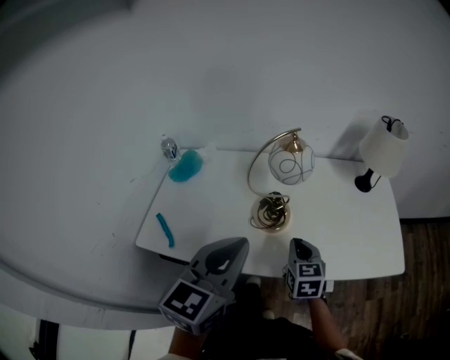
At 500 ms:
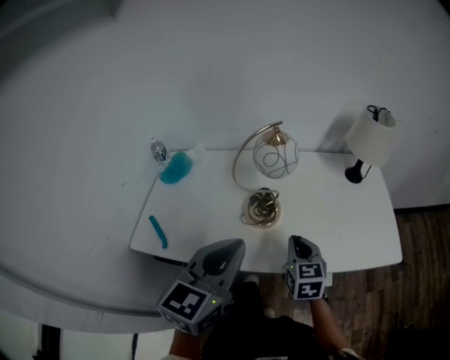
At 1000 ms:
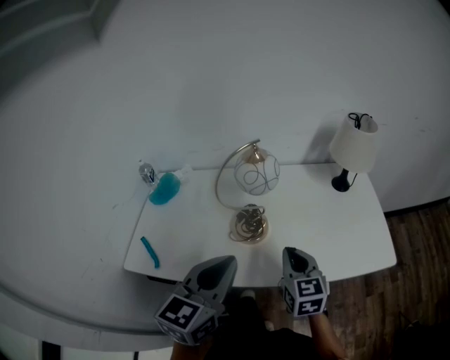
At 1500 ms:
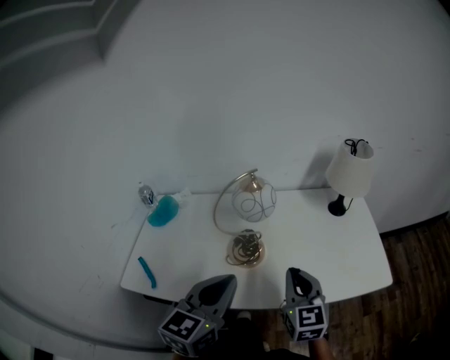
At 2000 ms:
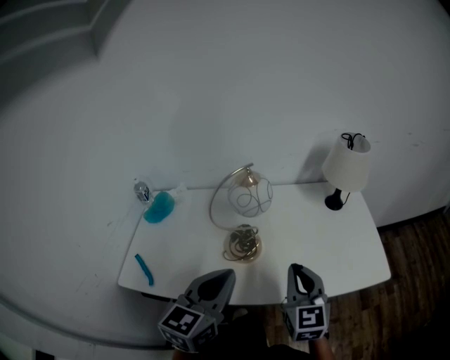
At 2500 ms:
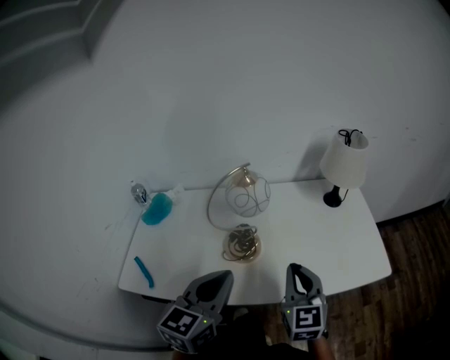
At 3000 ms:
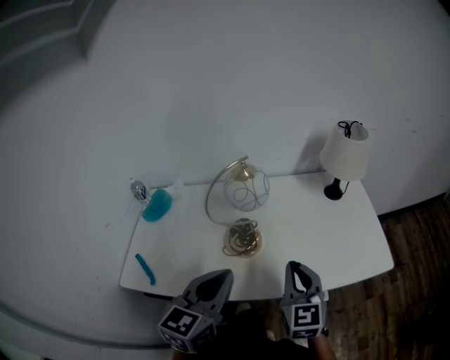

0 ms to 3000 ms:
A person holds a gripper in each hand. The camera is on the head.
0 ms to 1500 ms: The left gripper changes place by roughly 5 cm. Meanwhile the right gripper heads upward and to the right, covering roughly 10 cm.
1500 ms to 3000 ms: There are only small adjustments of the grippers.

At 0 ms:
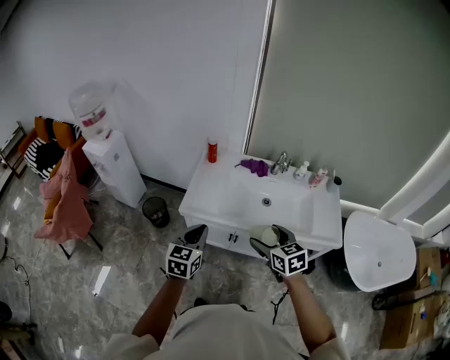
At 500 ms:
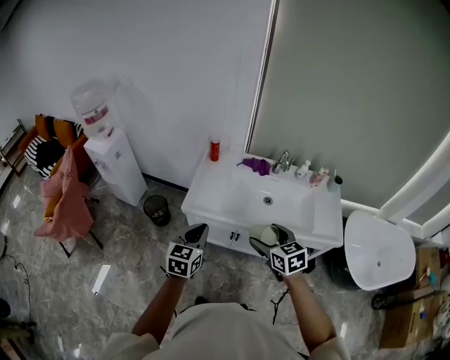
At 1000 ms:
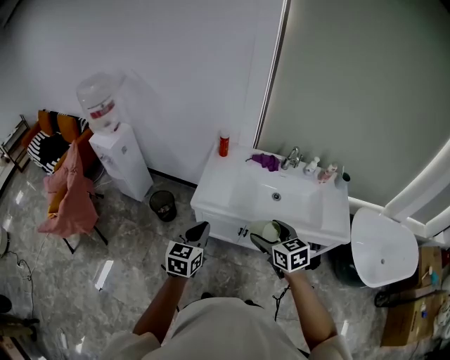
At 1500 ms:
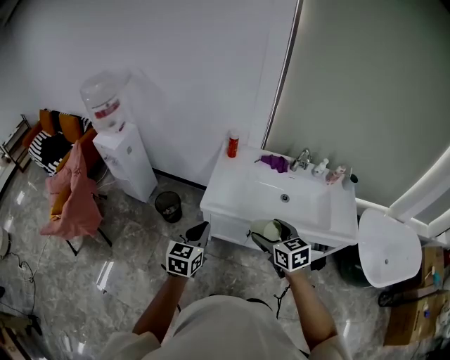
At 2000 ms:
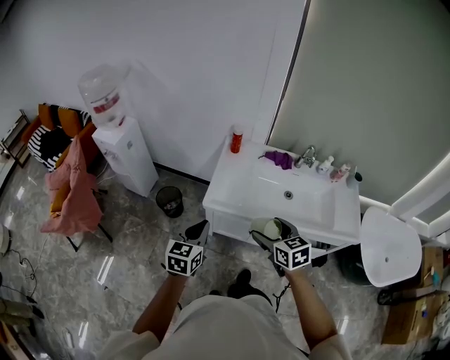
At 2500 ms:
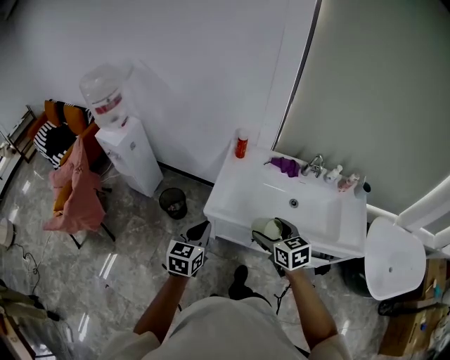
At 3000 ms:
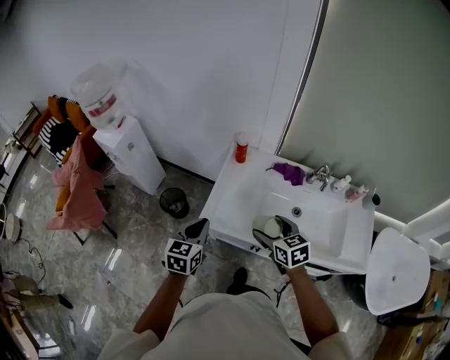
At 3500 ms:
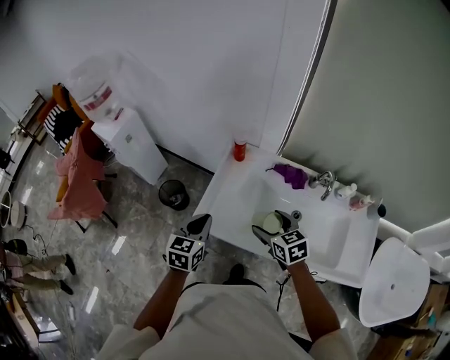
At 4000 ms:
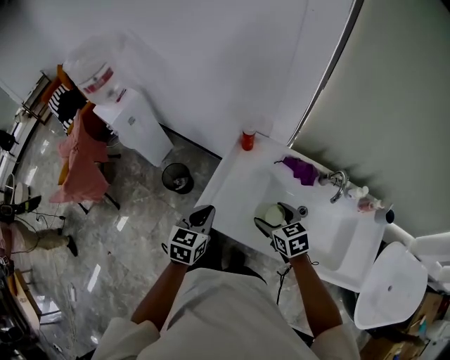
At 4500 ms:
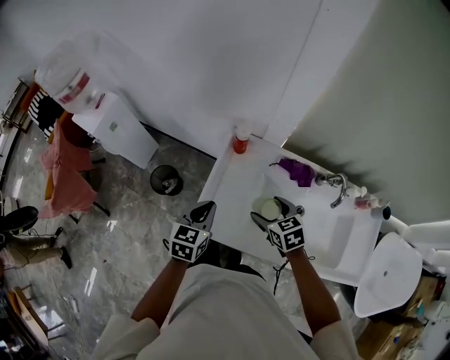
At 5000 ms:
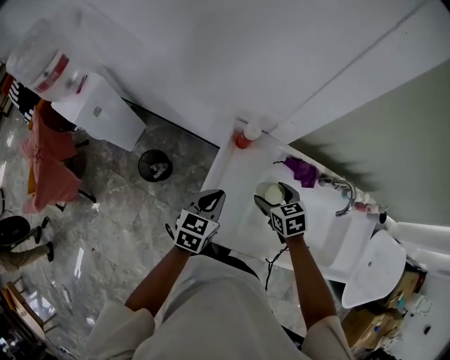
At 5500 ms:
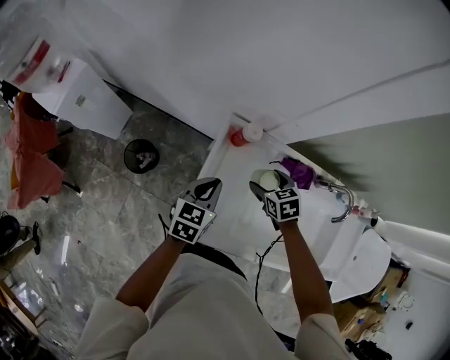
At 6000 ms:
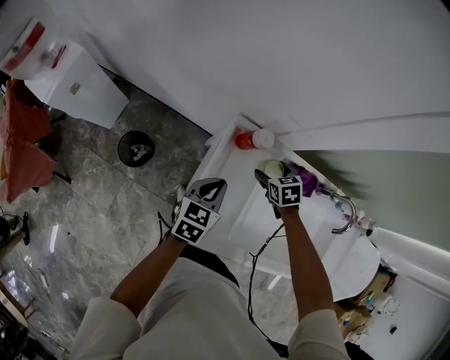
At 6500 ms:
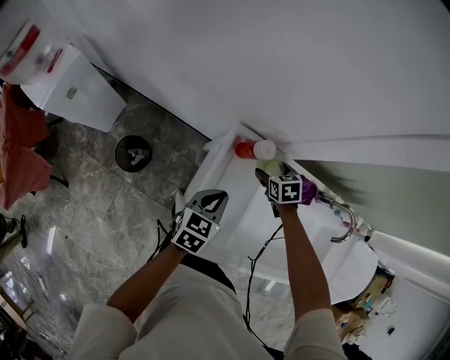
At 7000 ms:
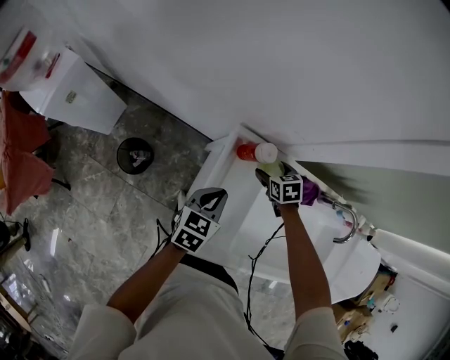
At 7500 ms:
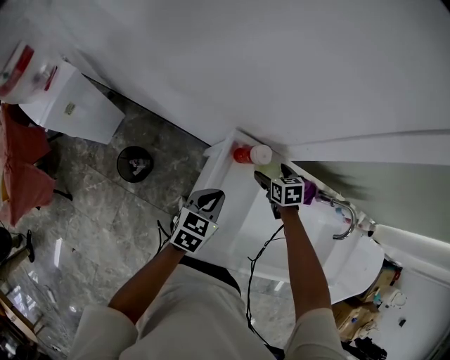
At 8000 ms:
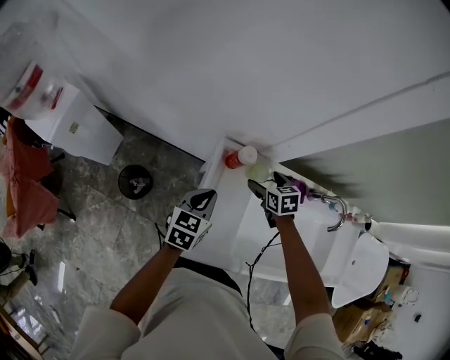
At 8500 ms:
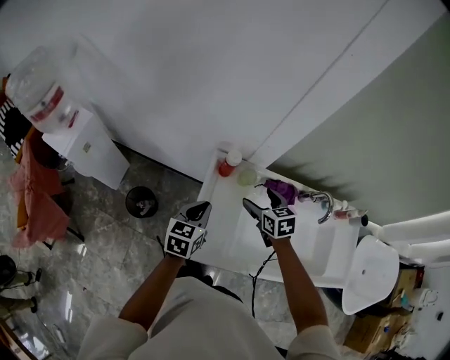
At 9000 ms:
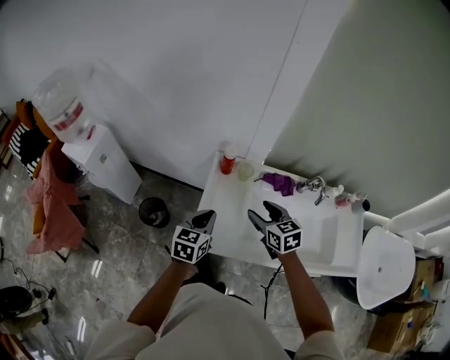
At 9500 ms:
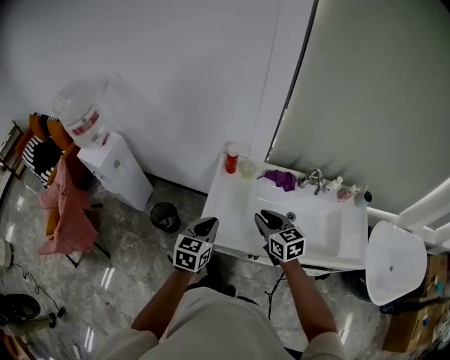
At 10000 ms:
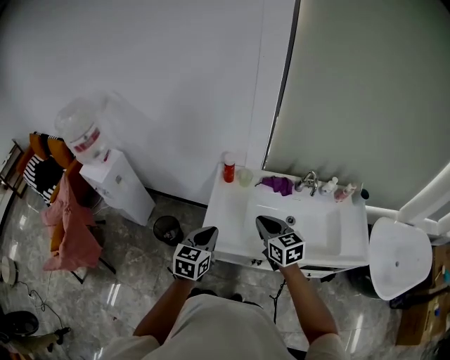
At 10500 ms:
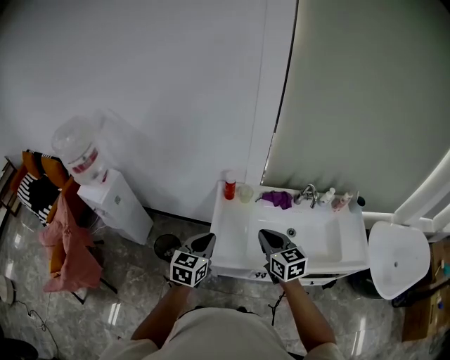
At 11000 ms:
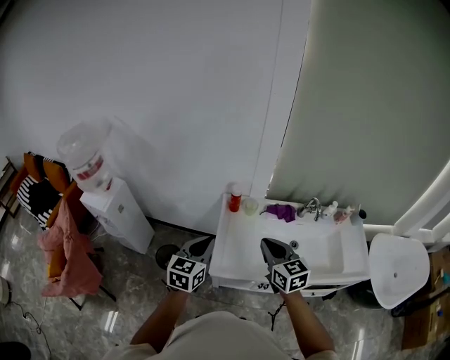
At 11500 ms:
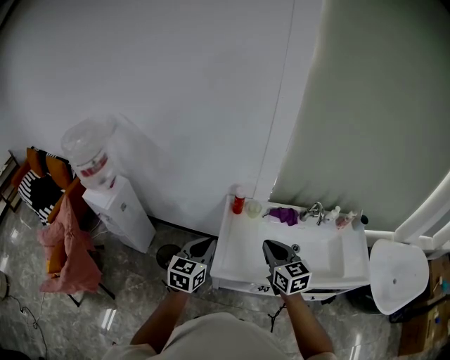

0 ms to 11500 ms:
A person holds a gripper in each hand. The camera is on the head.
0 ms to 2000 ms: Both grippers travel together to the left, roughly 15 cm.
2000 ms to 4000 ms: The right gripper goes approximately 30 cm forward and downward. Meanwhile the left gripper travels forward and to the right by approximately 25 cm.
4000 ms to 6000 ms: The two grippers go some 30 cm forward and downward. The right gripper rotates roughly 30 degrees.
6000 ms to 7500 ms: The grippers make only small movements.
7500 ms to 9500 ms: Both grippers move backward and upward, some 40 cm. The right gripper tips its fingers upward by about 40 degrees, and closes up.
9500 ms to 11500 ms: The right gripper shifts approximately 10 cm upward and to the left. The left gripper travels to the left and upward by approximately 15 cm.

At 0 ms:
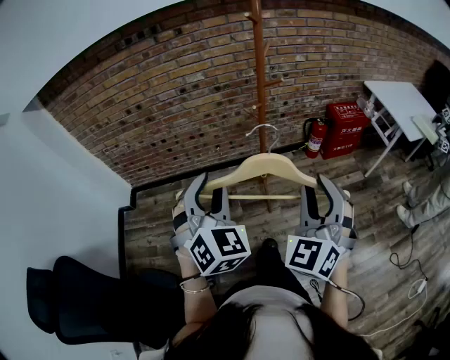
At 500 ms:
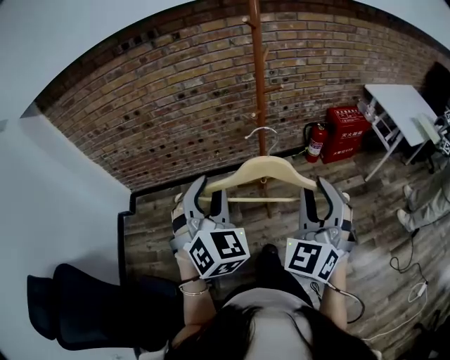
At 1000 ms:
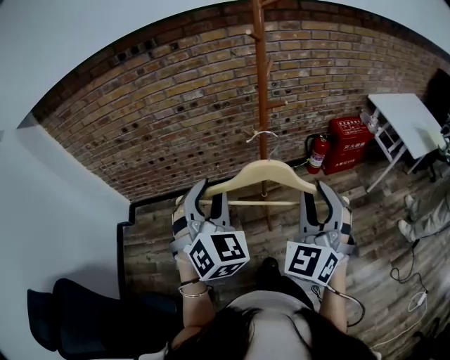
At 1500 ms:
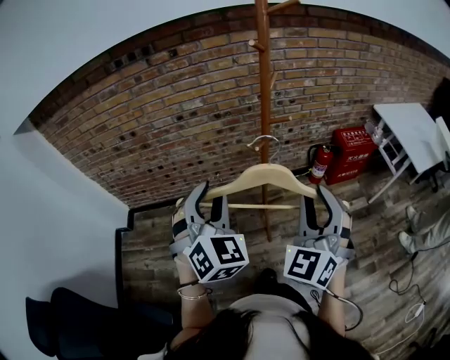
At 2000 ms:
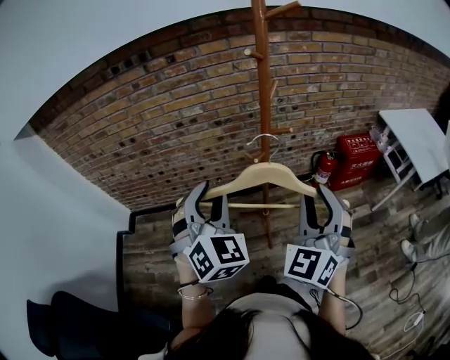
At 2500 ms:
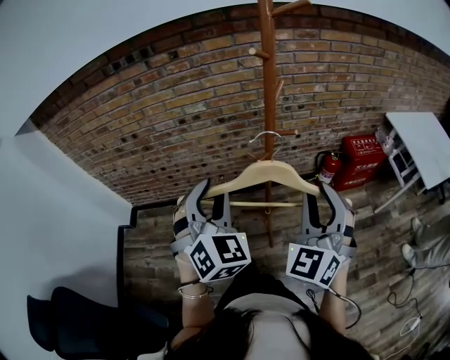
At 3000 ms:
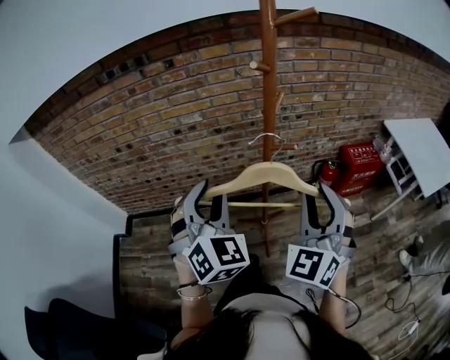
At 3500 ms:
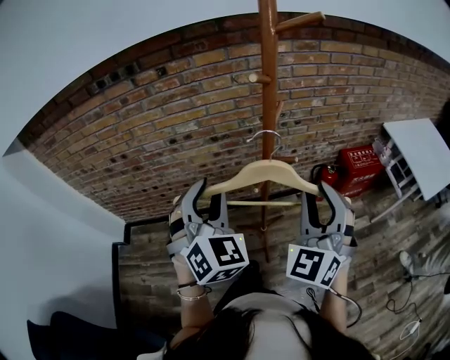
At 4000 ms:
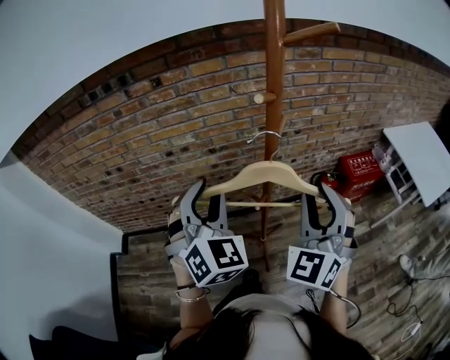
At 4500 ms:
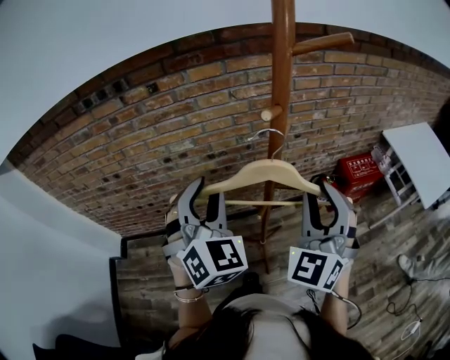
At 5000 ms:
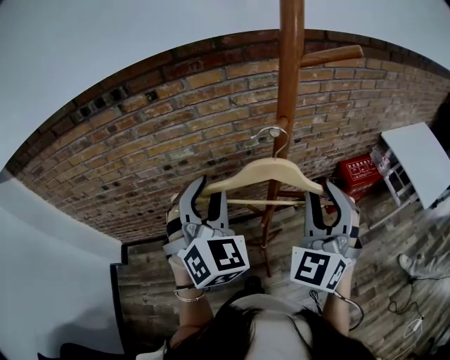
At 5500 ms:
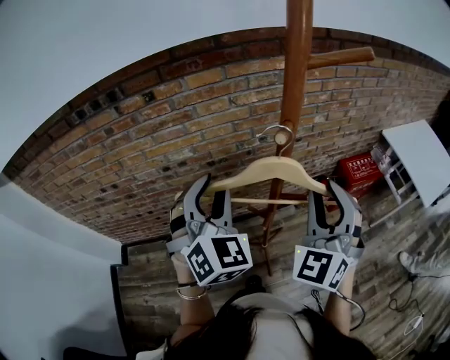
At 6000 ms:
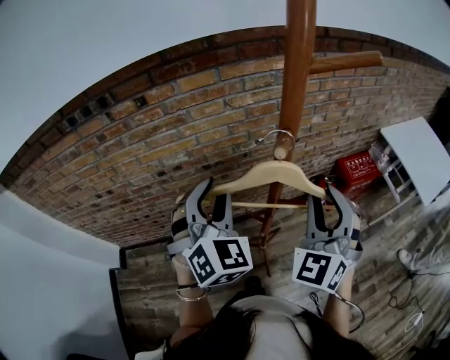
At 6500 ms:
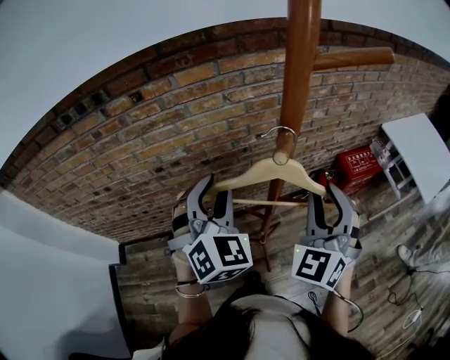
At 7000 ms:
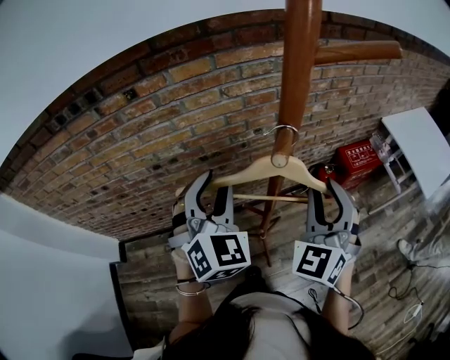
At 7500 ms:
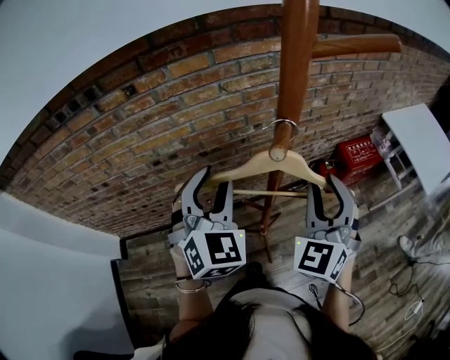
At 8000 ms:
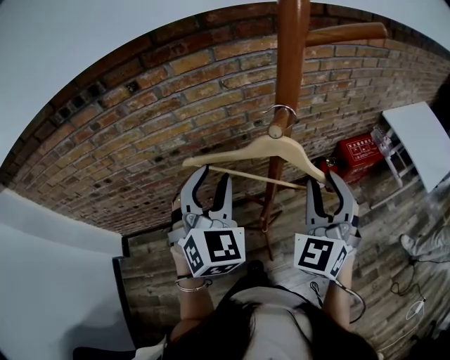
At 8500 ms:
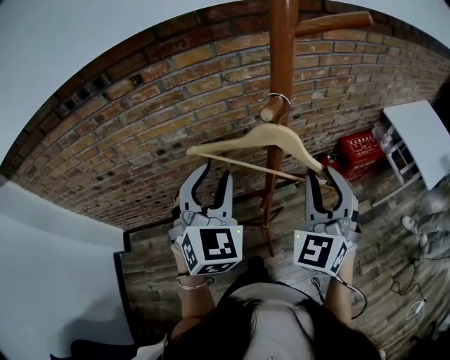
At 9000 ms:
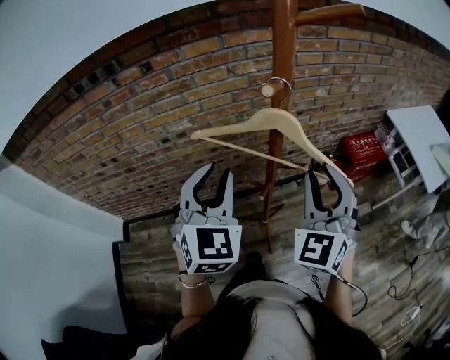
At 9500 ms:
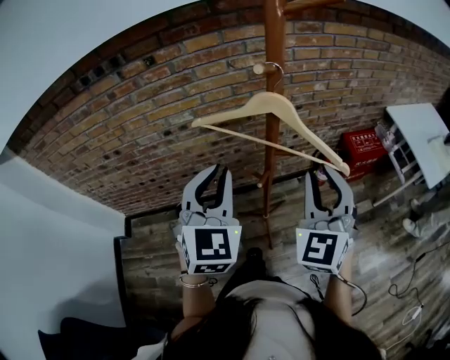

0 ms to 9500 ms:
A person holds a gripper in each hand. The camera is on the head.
0 ms to 2000 ms: Both grippers move forward, roughly 20 cm.
2000 ms to 4000 ms: The grippers both shift forward by roughly 15 cm.
4000 ms to 5500 ms: Both grippers move forward, roughly 5 cm.
5500 ms to 7500 ms: The right gripper shifts by roughly 5 cm; the left gripper ends up approximately 5 cm from where it was.
7500 ms to 9500 ms: The grippers both shift backward by about 10 cm. The left gripper closes its fingers.

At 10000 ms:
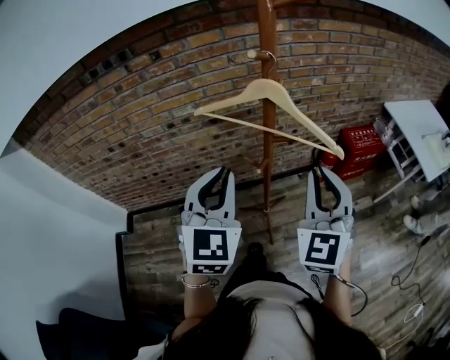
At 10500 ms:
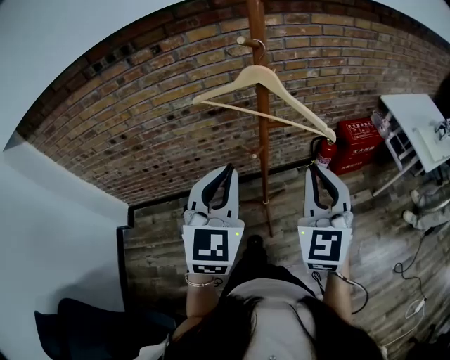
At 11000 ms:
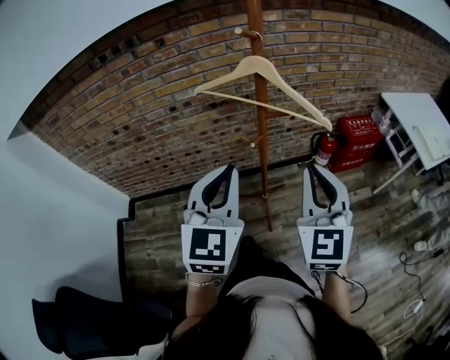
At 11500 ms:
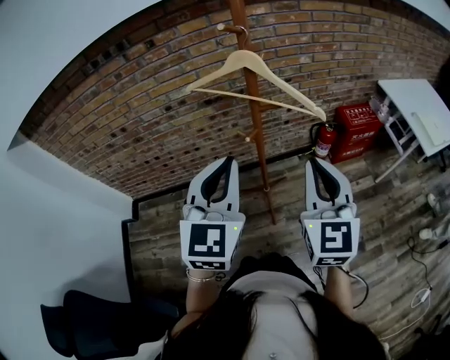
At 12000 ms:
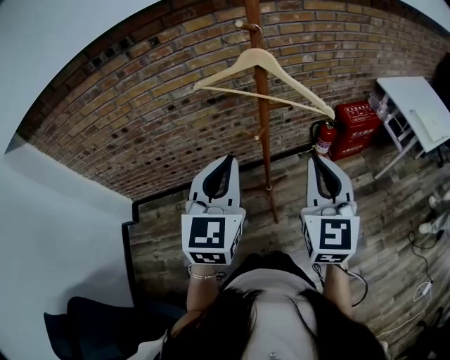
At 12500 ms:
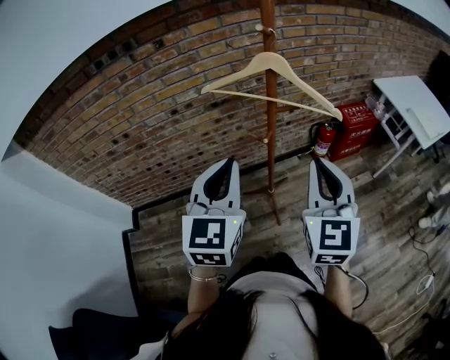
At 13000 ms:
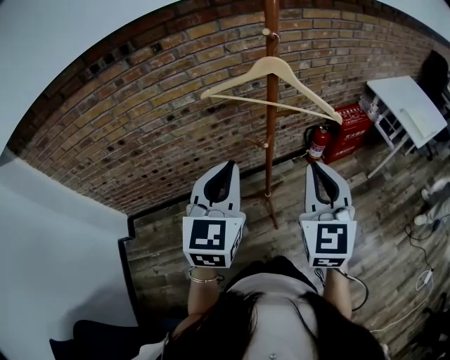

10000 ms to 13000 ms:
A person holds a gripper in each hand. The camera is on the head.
10000 ms to 11500 ms: The right gripper moves backward, about 10 cm; the left gripper is displaced backward and to the right by about 10 cm.
11500 ms to 13000 ms: Both grippers travel together to the left, approximately 10 cm.
